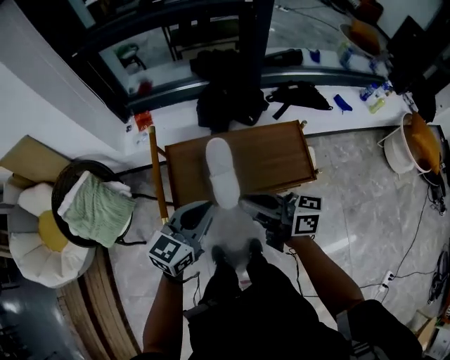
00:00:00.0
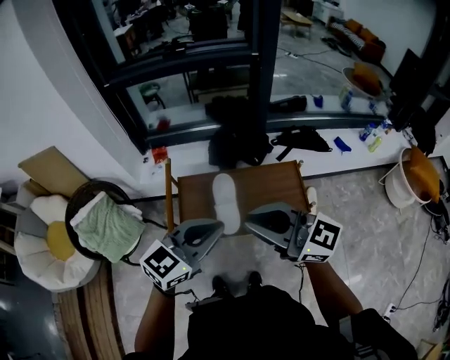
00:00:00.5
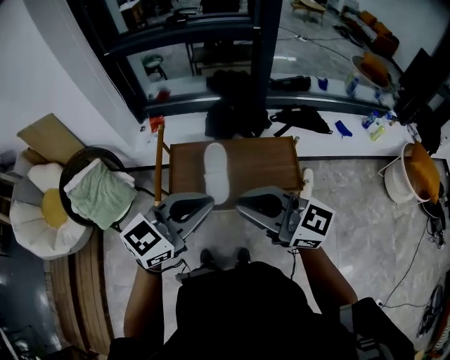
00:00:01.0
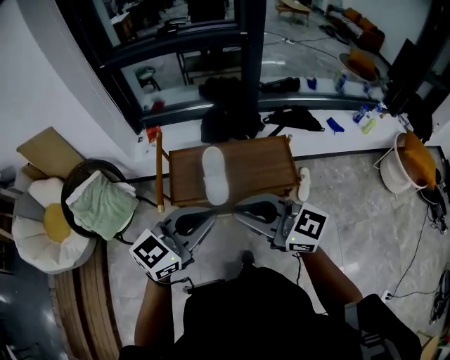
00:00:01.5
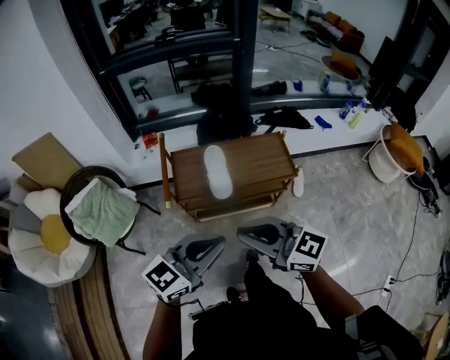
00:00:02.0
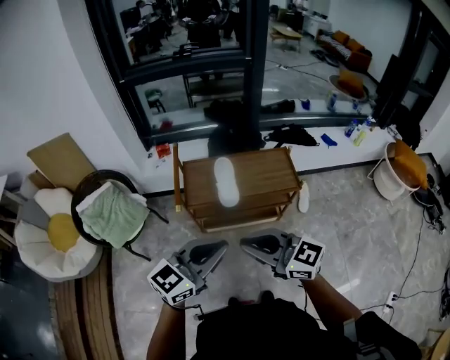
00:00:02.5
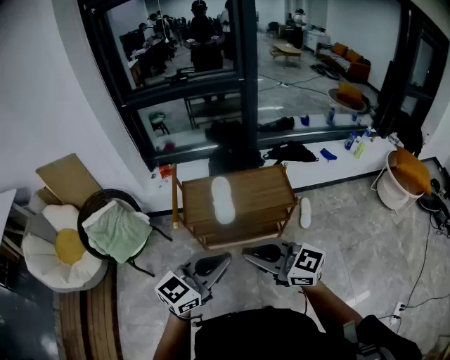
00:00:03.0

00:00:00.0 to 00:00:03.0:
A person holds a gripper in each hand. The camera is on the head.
00:00:00.0 to 00:00:01.5: The two grippers go roughly 20 cm backward and upward. The right gripper rotates around the line of its fingers by approximately 40 degrees, counterclockwise from behind.
00:00:01.5 to 00:00:03.0: The grippers both shift backward by roughly 15 cm.

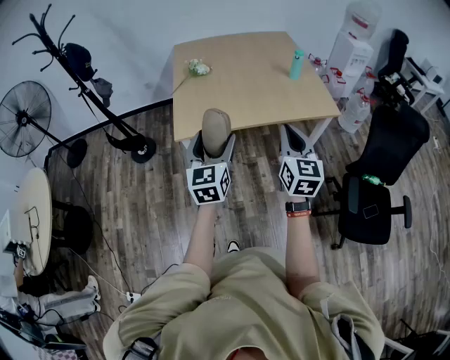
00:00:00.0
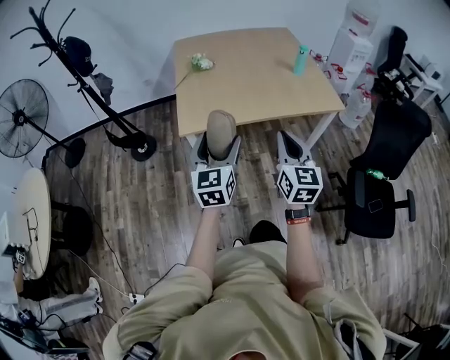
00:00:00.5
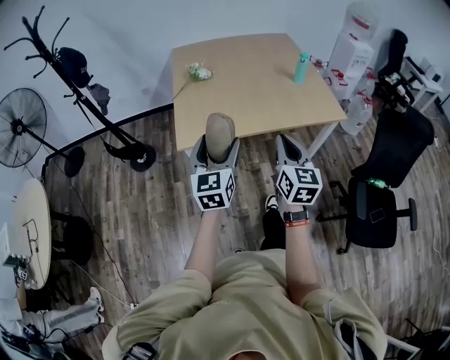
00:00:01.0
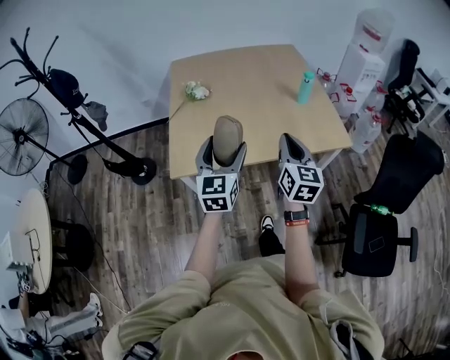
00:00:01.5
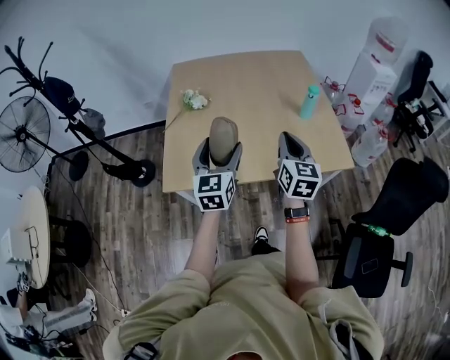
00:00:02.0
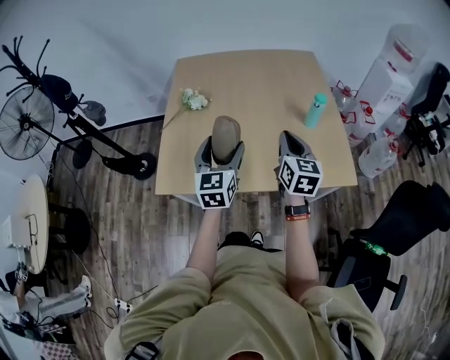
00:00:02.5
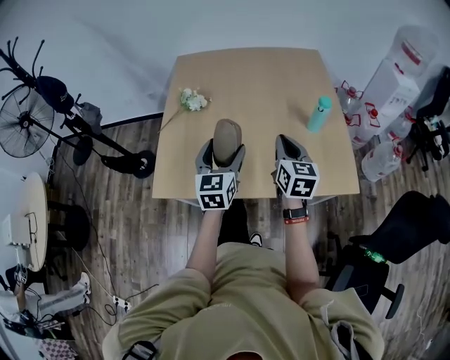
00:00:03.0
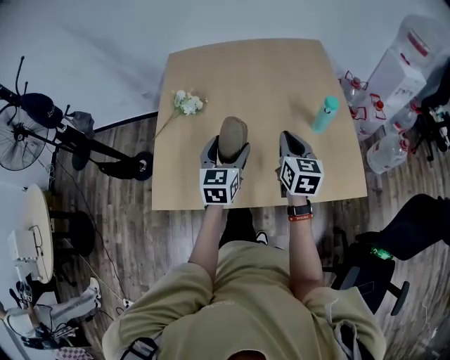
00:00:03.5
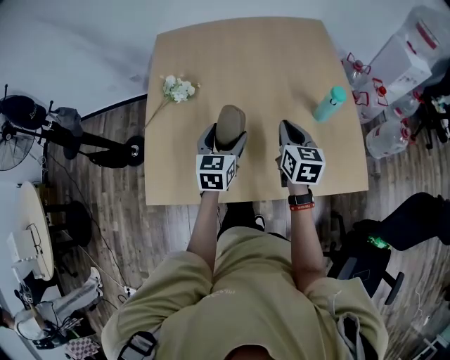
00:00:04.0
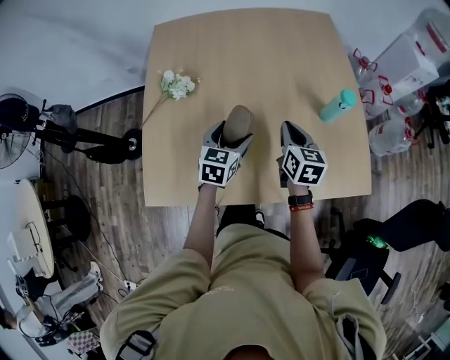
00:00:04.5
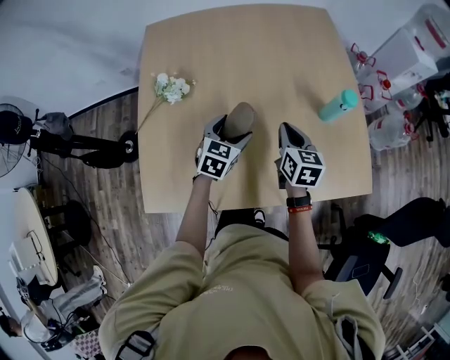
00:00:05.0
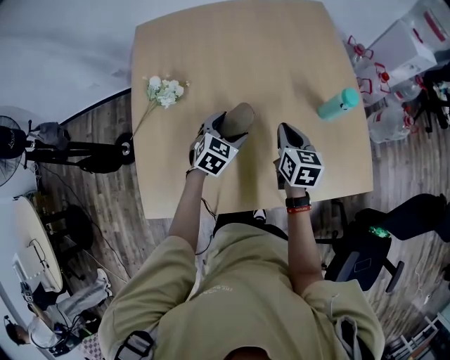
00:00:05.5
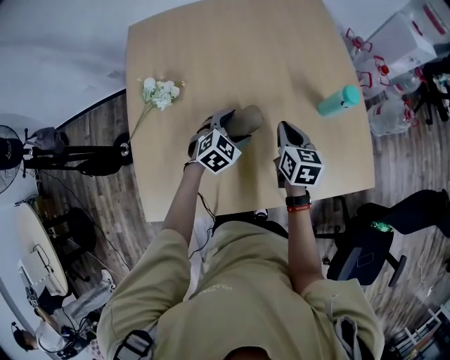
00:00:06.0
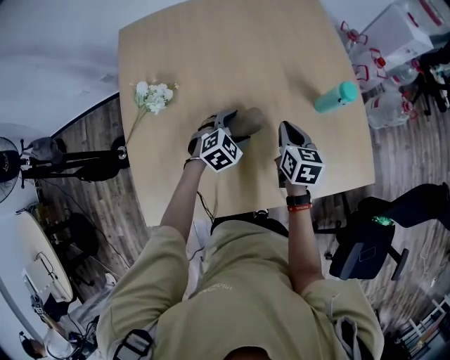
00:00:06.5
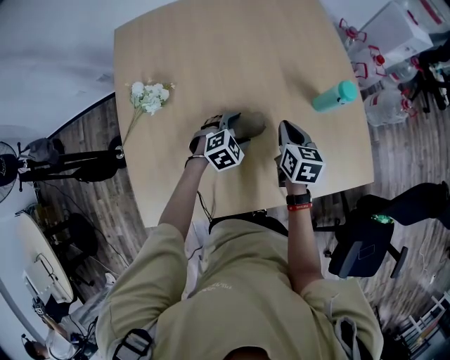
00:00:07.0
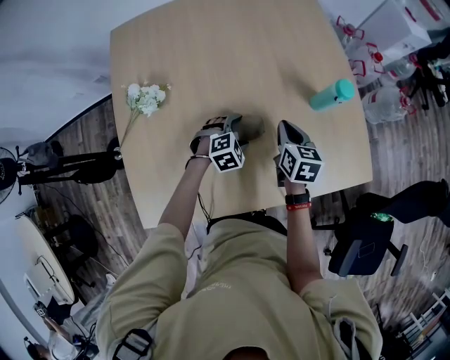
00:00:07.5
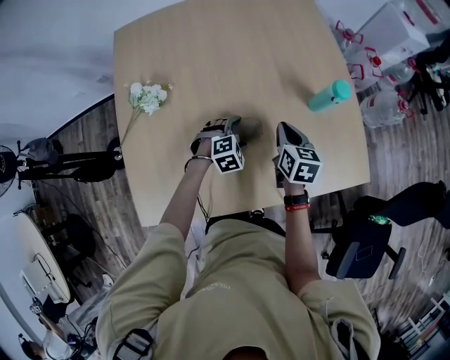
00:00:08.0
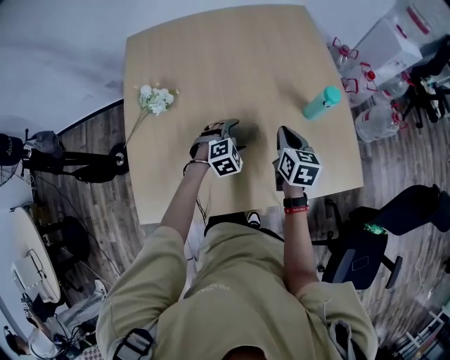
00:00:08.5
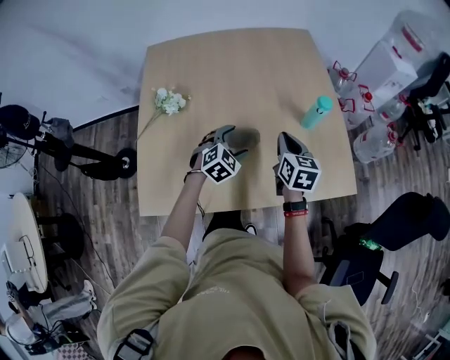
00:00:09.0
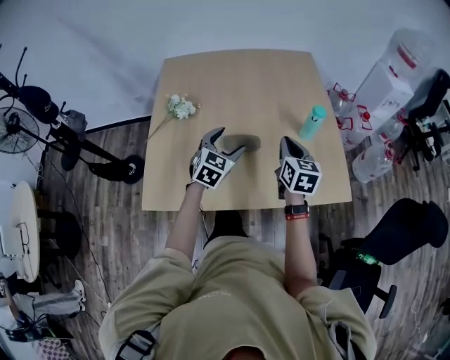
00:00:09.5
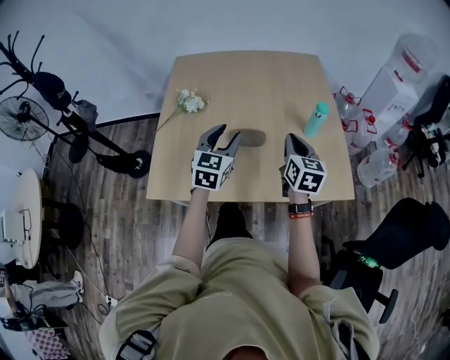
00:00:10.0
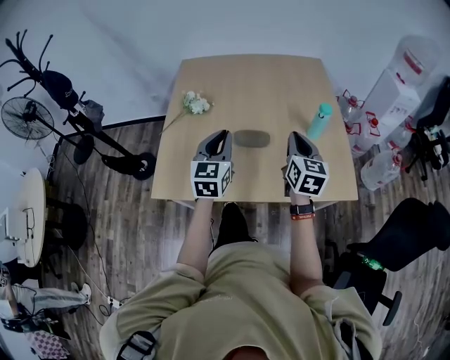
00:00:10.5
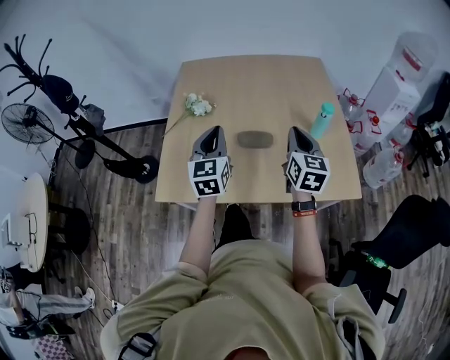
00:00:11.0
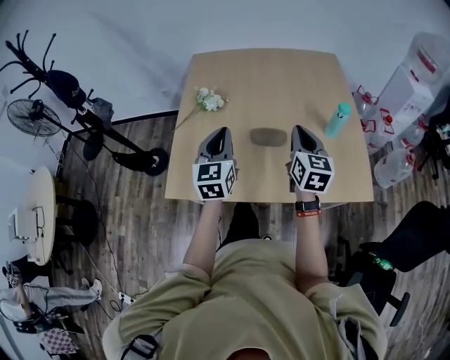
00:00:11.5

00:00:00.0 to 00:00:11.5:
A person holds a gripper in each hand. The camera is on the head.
00:00:00.0 to 00:00:02.0: Both grippers travel together forward, some 35 cm.
00:00:02.0 to 00:00:04.0: Both grippers travel together forward and downward, about 35 cm.
00:00:04.0 to 00:00:06.0: The two grippers go about 15 cm downward and forward. The left gripper swivels about 50 degrees.
00:00:06.0 to 00:00:07.5: The left gripper heads downward, covering about 10 cm, and changes its angle by about 20 degrees.
00:00:07.5 to 00:00:09.5: Both grippers move upward and backward, about 25 cm. The left gripper points its fingers some 30 degrees further upward.
00:00:09.5 to 00:00:11.5: The left gripper goes some 15 cm to the left, upward and backward, changes its angle by about 40 degrees, and closes. The right gripper goes some 10 cm to the left and upward.

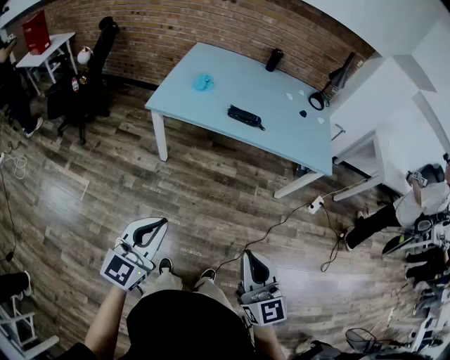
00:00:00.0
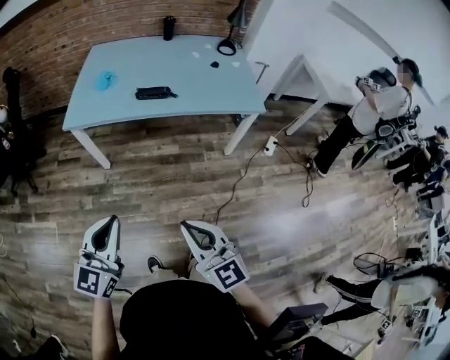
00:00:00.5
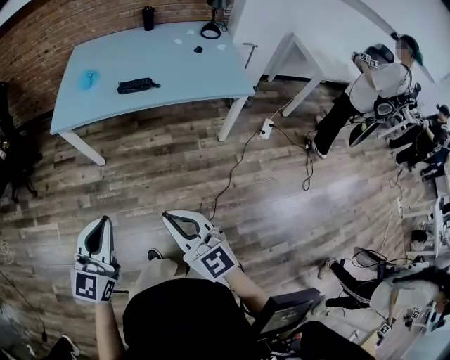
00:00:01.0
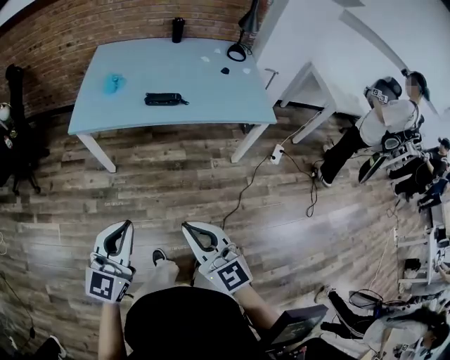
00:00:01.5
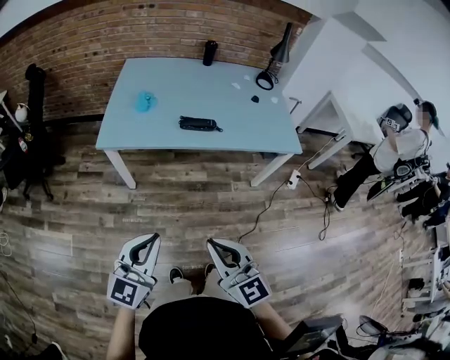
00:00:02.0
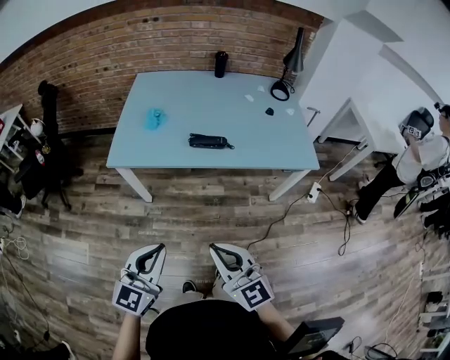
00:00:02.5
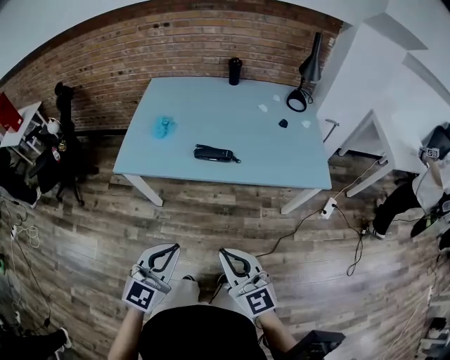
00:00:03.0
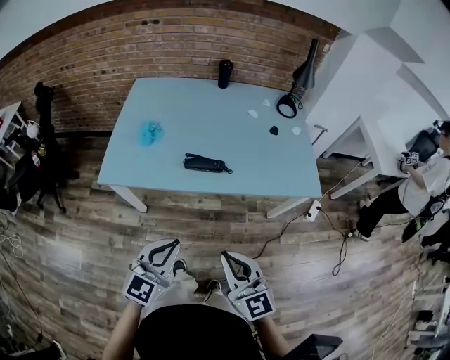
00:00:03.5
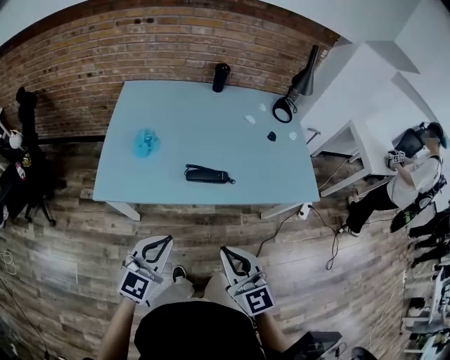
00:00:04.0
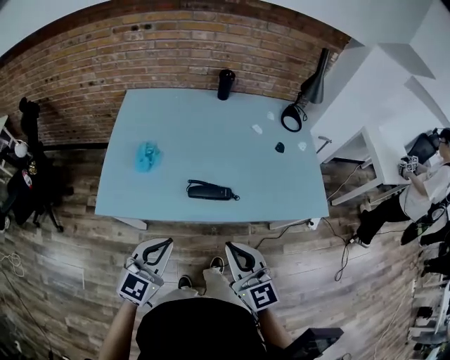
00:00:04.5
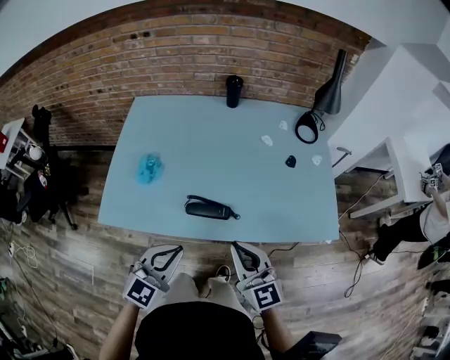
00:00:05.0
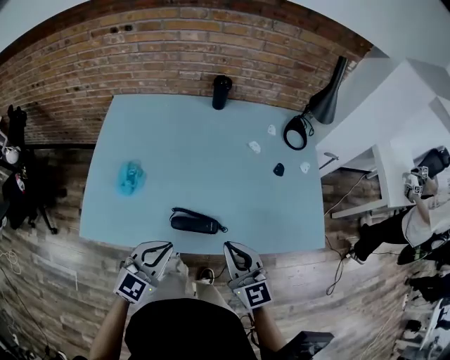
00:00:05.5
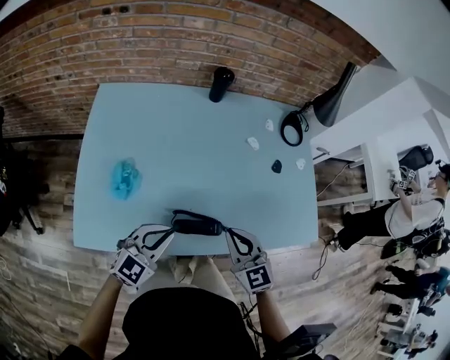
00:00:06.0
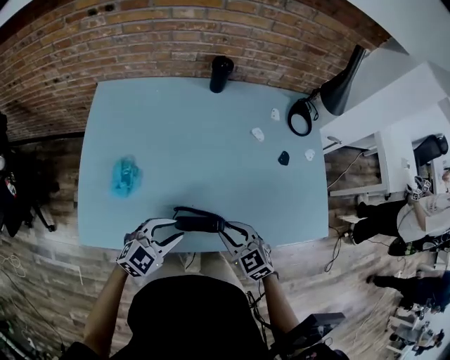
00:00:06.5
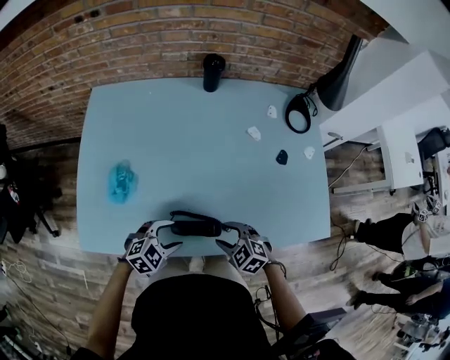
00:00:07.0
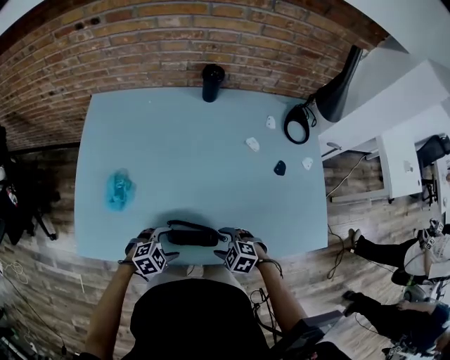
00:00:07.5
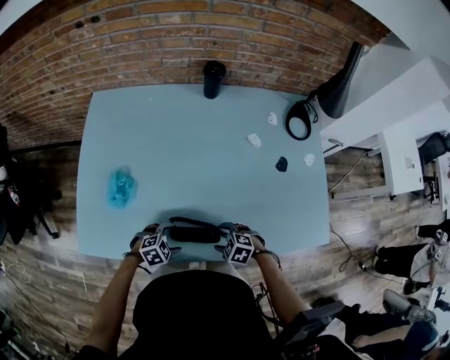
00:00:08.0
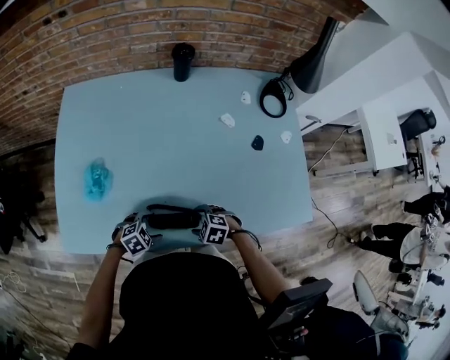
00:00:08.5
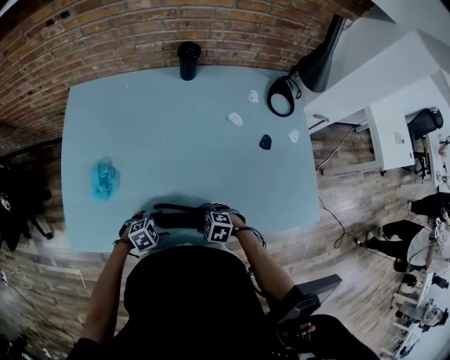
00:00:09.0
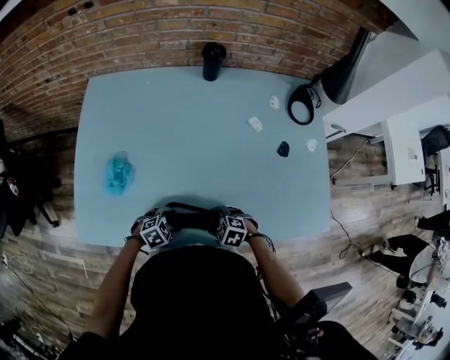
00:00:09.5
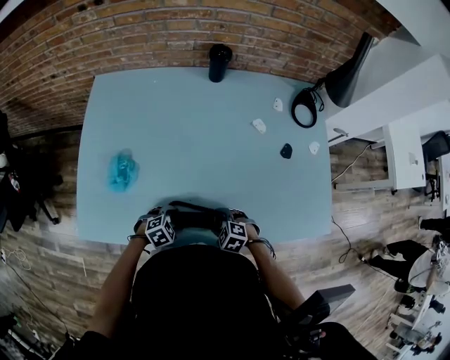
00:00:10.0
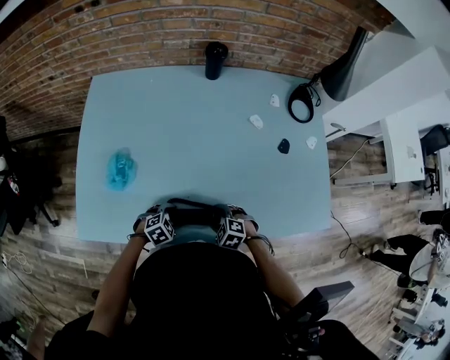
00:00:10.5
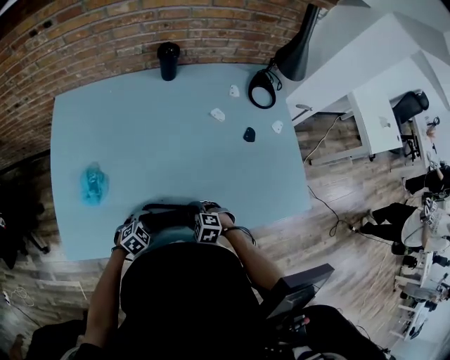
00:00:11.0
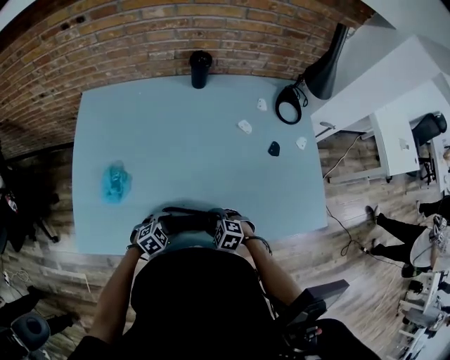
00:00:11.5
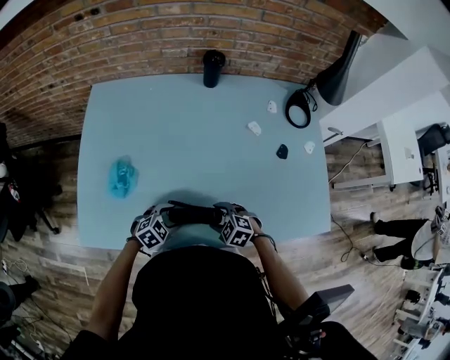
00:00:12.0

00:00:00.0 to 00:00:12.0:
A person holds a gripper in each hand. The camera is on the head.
00:00:00.0 to 00:00:02.0: The left gripper travels forward by roughly 10 cm, and travels to the right and back again, about 15 cm each way; the right gripper heads forward and to the left, covering roughly 15 cm.
00:00:02.0 to 00:00:04.0: Both grippers move forward, some 30 cm.
00:00:04.0 to 00:00:06.0: The grippers both shift forward by roughly 30 cm.
00:00:06.0 to 00:00:08.0: The two grippers go some 25 cm downward. The right gripper angles its fingers downward, by approximately 40 degrees, and opens its fingers. The left gripper points its fingers roughly 40 degrees further downward, and opens its fingers.
00:00:08.0 to 00:00:10.0: The grippers move only a little.
00:00:10.0 to 00:00:12.0: The right gripper changes place by approximately 5 cm. Meanwhile the left gripper ends up some 5 cm from where it was.
